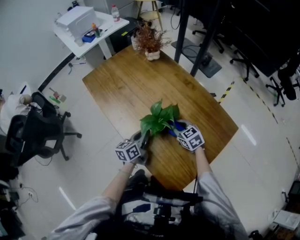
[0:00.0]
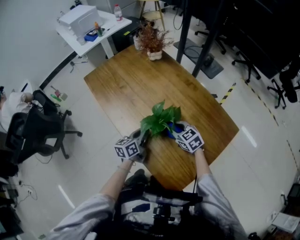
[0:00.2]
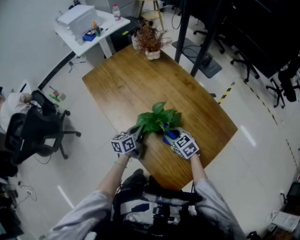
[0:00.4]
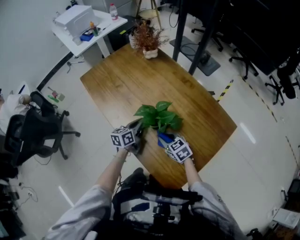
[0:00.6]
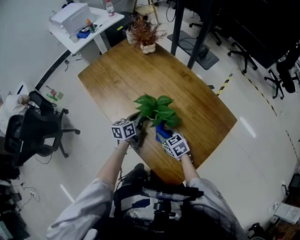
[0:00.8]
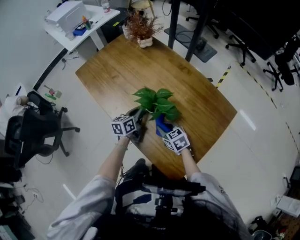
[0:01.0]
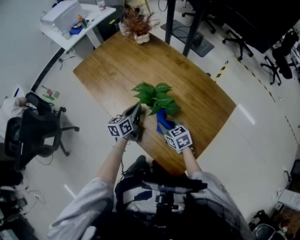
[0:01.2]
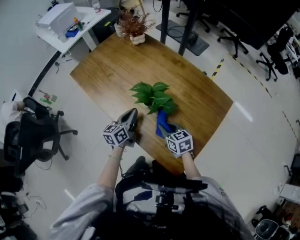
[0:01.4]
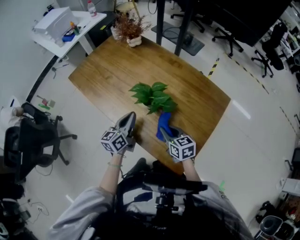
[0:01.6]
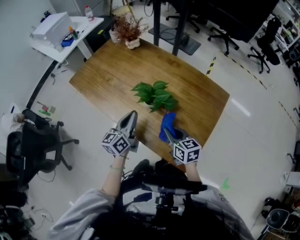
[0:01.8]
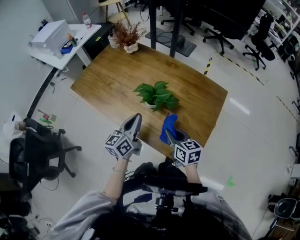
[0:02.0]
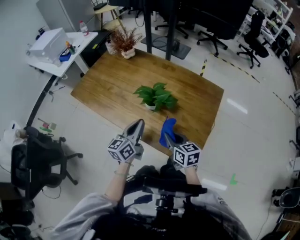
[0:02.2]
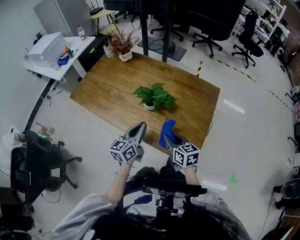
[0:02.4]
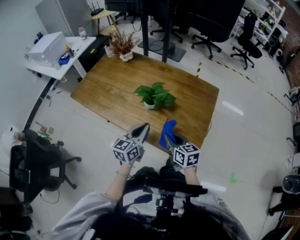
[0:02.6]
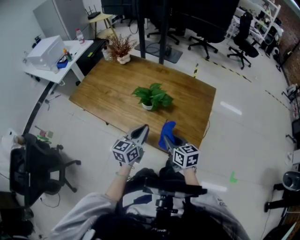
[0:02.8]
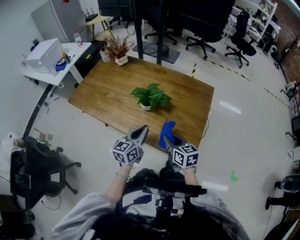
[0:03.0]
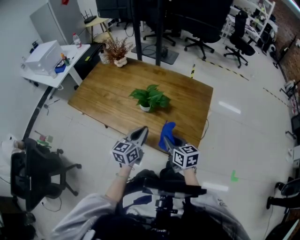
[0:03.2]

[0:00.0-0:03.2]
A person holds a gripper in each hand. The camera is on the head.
0:00.0 to 0:01.6: The left gripper shifts roughly 5 cm upward. The right gripper travels backward by approximately 10 cm, and rotates roughly 30 degrees.
0:01.6 to 0:03.2: Both grippers travel together backward, roughly 10 cm. The right gripper turns by approximately 20 degrees. The left gripper turns by about 30 degrees.

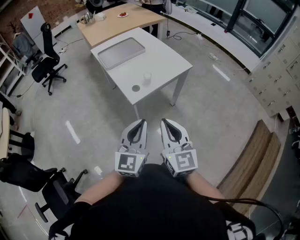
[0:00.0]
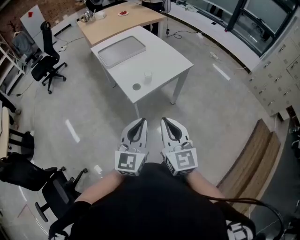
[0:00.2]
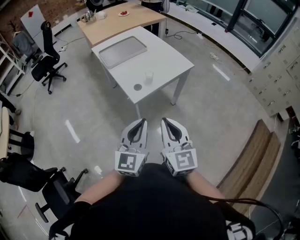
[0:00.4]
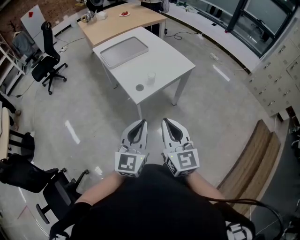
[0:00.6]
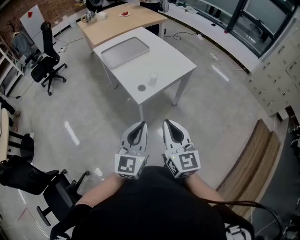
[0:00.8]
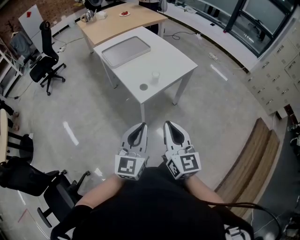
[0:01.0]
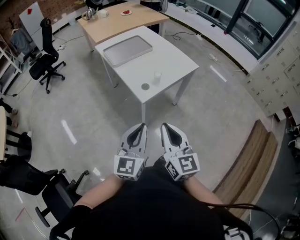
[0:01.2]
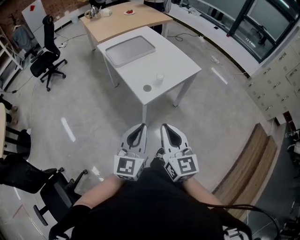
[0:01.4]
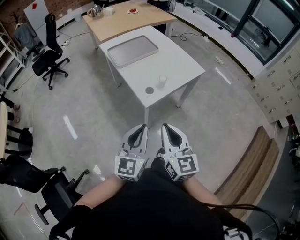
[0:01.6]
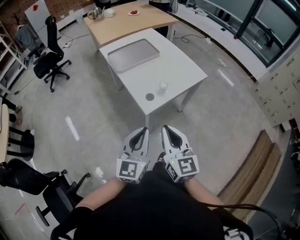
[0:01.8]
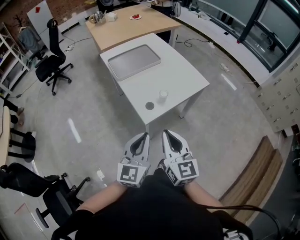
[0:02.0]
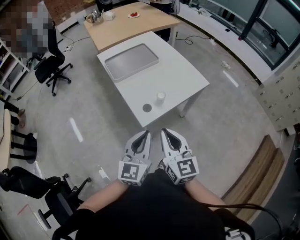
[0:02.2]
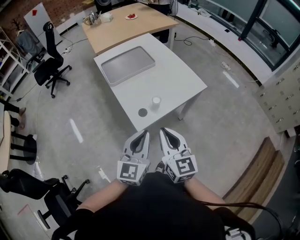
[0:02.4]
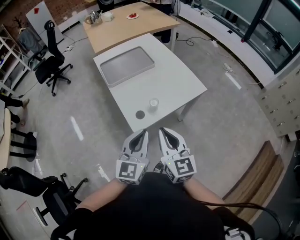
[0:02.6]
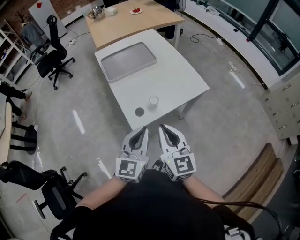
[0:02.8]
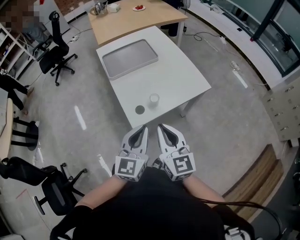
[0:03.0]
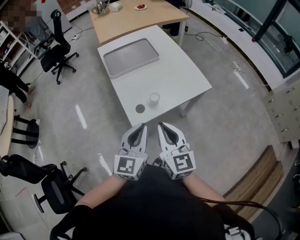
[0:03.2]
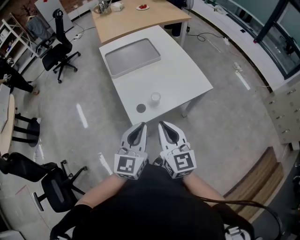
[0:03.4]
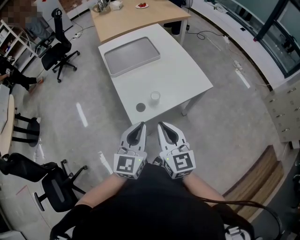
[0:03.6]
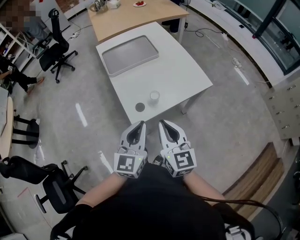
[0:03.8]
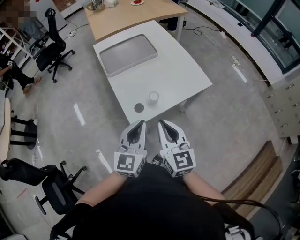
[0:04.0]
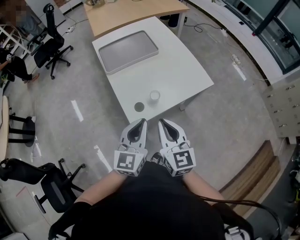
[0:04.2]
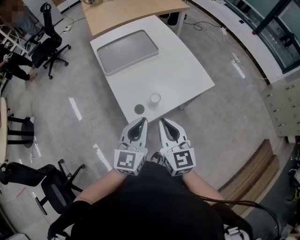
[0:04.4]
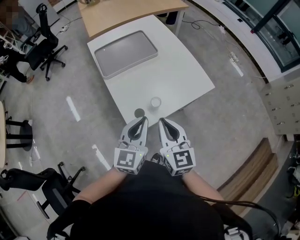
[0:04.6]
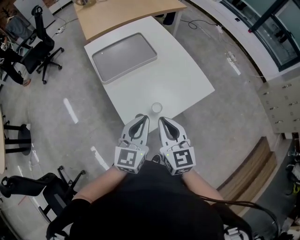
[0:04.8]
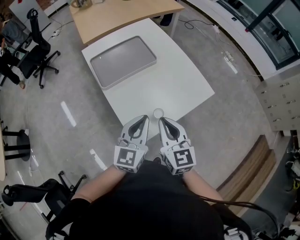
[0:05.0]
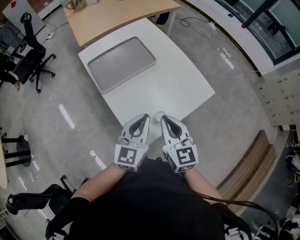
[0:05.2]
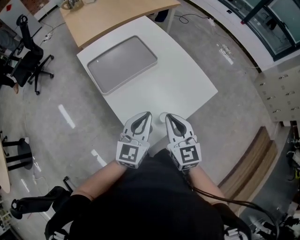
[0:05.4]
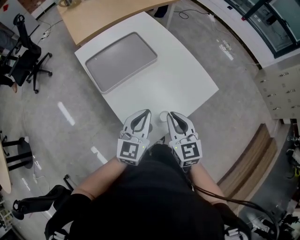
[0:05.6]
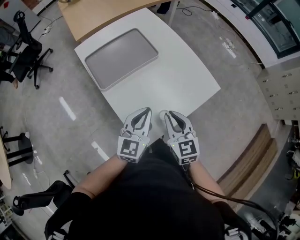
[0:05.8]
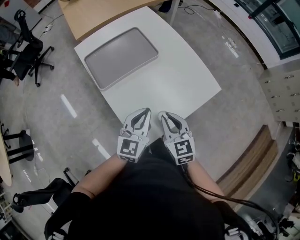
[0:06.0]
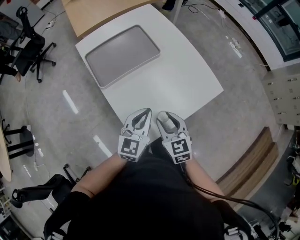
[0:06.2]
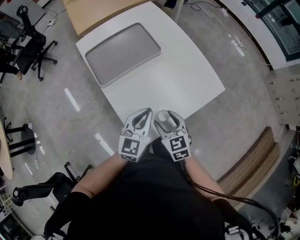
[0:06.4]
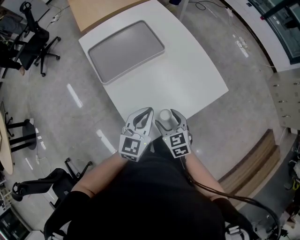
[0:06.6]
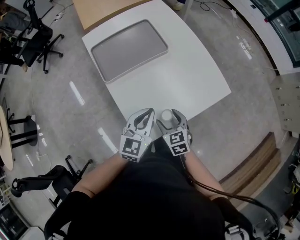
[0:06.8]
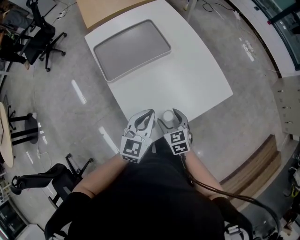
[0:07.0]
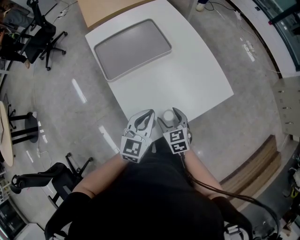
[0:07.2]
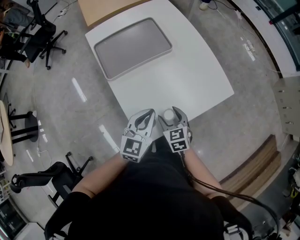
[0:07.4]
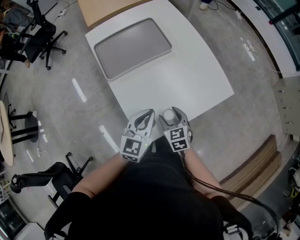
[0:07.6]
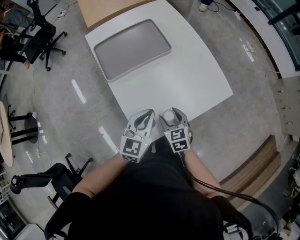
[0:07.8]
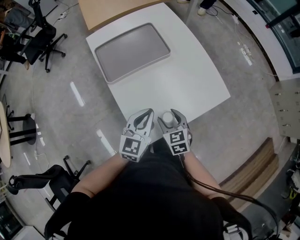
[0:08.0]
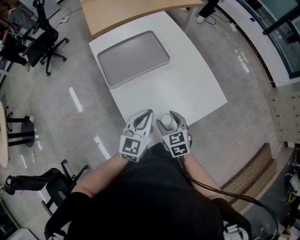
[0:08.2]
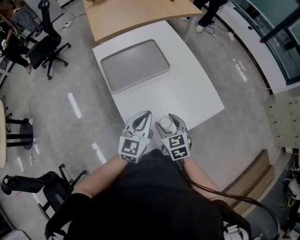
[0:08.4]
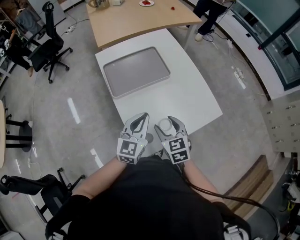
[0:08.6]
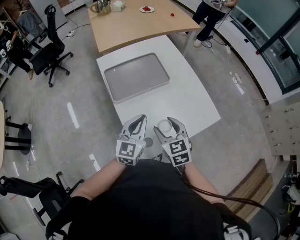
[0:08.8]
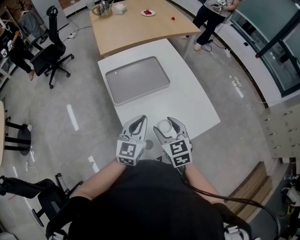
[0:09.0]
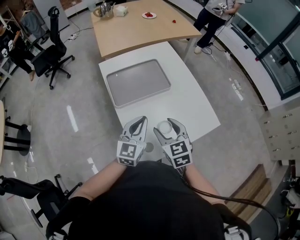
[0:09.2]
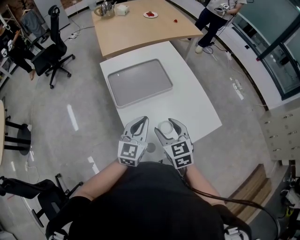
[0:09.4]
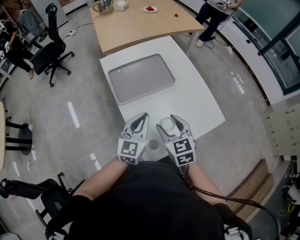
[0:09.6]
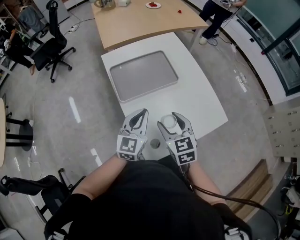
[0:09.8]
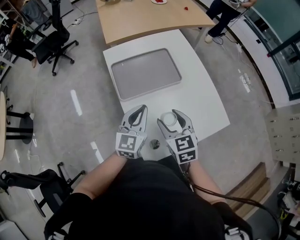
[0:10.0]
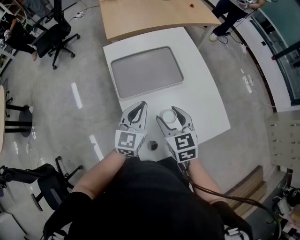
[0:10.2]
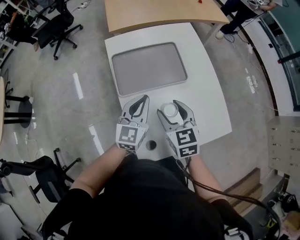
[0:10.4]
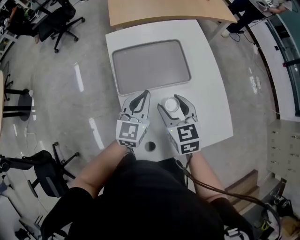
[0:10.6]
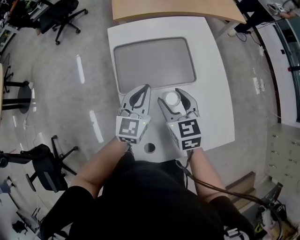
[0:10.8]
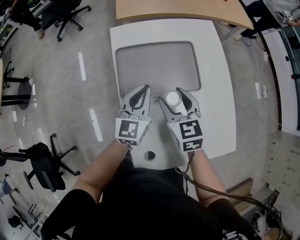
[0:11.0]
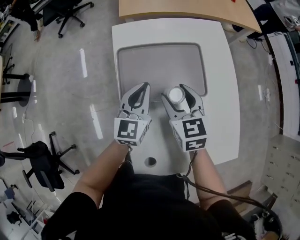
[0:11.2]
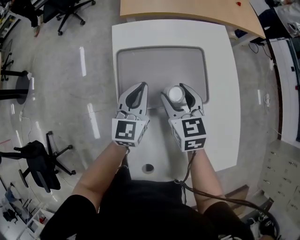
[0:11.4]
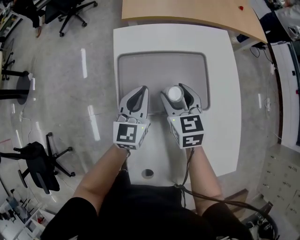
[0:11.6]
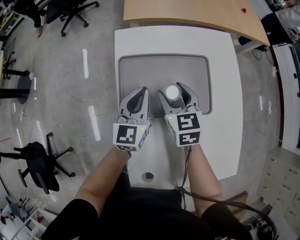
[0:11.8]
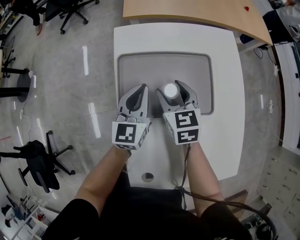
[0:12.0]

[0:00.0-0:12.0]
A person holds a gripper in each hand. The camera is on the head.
0:00.0 to 0:01.6: The grippers both shift to the left by some 10 cm.
0:01.6 to 0:03.0: The grippers both shift forward and to the right by roughly 20 cm.
0:03.0 to 0:04.4: The two grippers go some 5 cm forward.
0:04.4 to 0:06.0: The left gripper goes roughly 20 cm forward, while the right gripper heads forward and downward, covering some 20 cm.
0:06.0 to 0:07.6: The right gripper moves downward, approximately 15 cm, and opens up.
0:07.6 to 0:09.0: The right gripper is displaced upward by about 20 cm. Meanwhile the left gripper shifts roughly 10 cm upward and to the left.
0:09.0 to 0:10.4: Both grippers move forward, approximately 15 cm.
0:10.4 to 0:12.0: The grippers both shift forward and downward by roughly 25 cm.

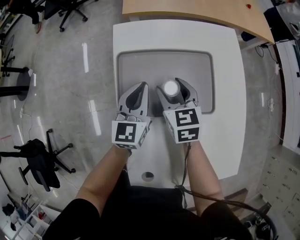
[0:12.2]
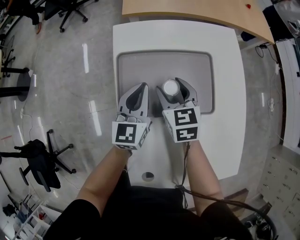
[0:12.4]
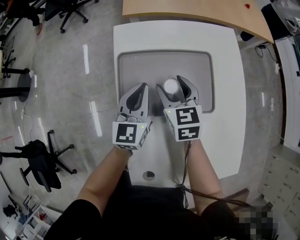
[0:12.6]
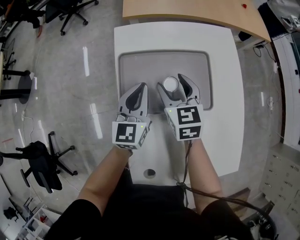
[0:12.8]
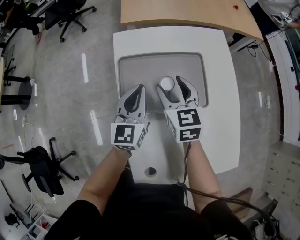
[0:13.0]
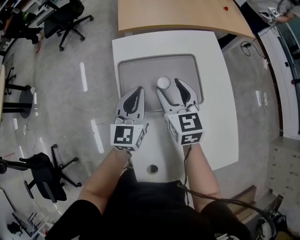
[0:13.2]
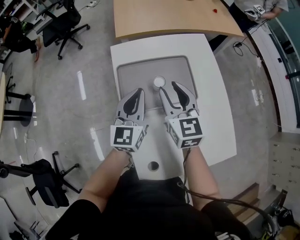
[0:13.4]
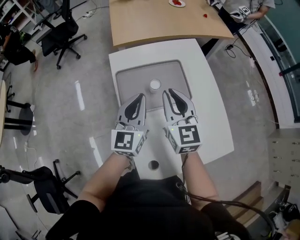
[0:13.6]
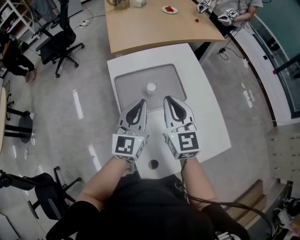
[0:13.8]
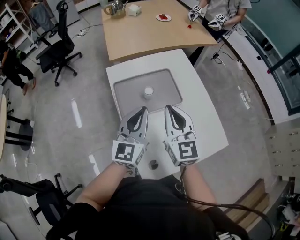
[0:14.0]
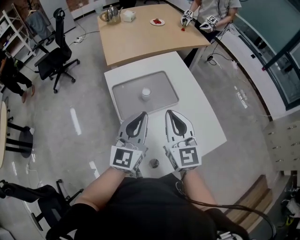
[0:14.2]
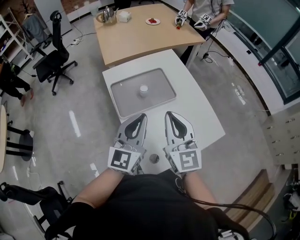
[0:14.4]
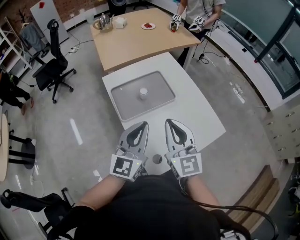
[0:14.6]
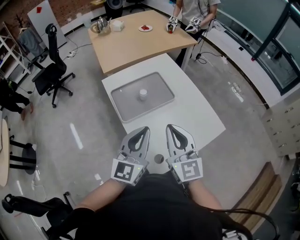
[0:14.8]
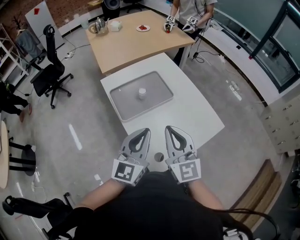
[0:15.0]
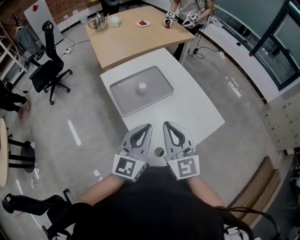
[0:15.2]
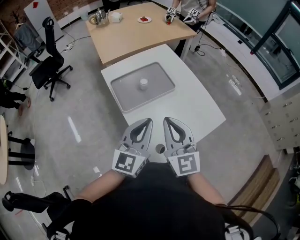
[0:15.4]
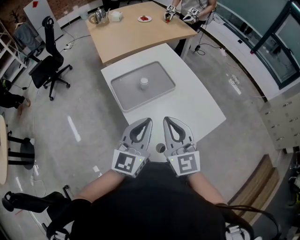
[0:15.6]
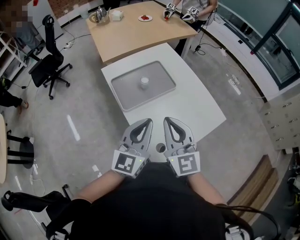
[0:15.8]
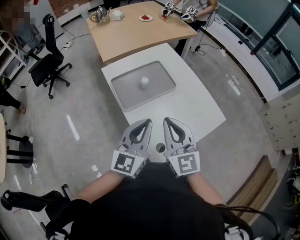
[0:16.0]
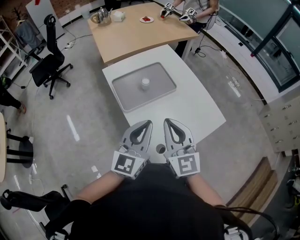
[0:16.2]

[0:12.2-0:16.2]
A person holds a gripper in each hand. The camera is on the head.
0:12.2 to 0:13.6: The grippers both shift upward and backward by roughly 25 cm. The right gripper changes its angle by approximately 30 degrees, and closes its fingers.
0:13.6 to 0:14.8: Both grippers travel together backward and upward, approximately 25 cm. The left gripper rotates approximately 20 degrees.
0:14.8 to 0:16.2: The grippers move only a little.

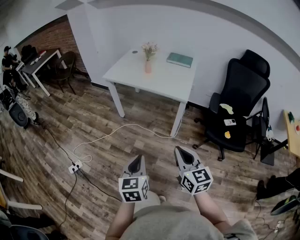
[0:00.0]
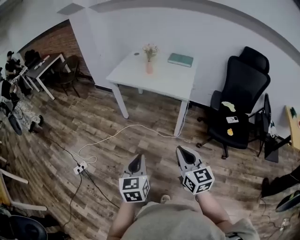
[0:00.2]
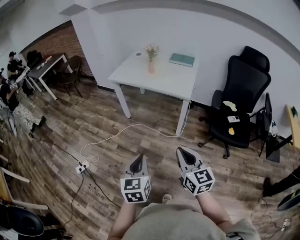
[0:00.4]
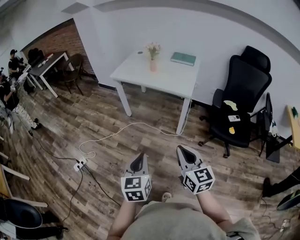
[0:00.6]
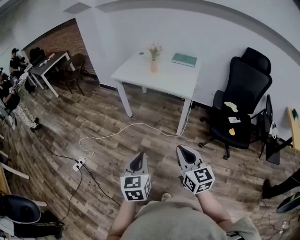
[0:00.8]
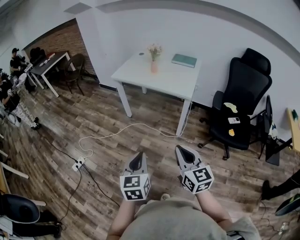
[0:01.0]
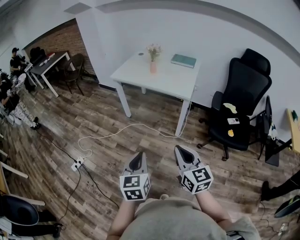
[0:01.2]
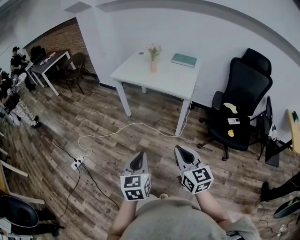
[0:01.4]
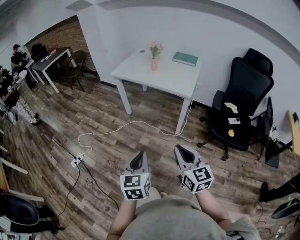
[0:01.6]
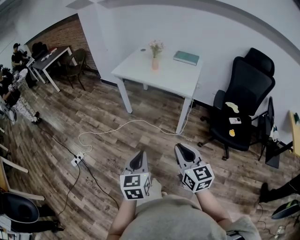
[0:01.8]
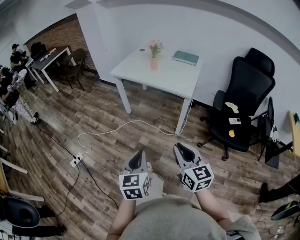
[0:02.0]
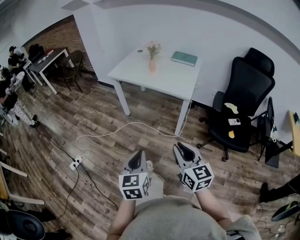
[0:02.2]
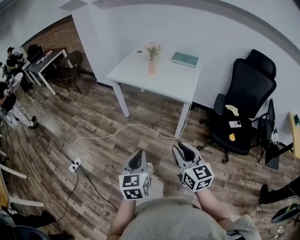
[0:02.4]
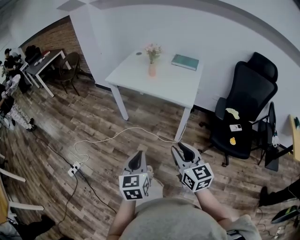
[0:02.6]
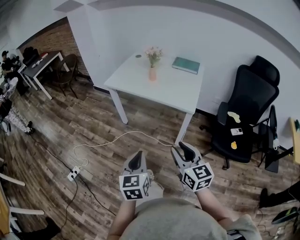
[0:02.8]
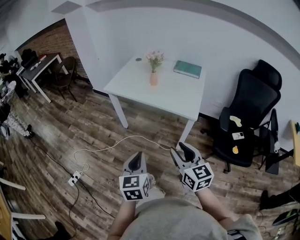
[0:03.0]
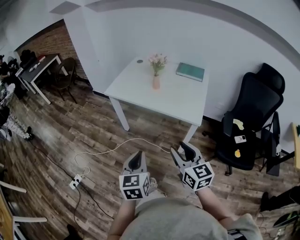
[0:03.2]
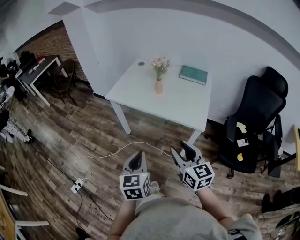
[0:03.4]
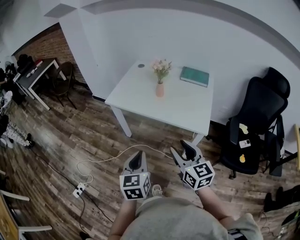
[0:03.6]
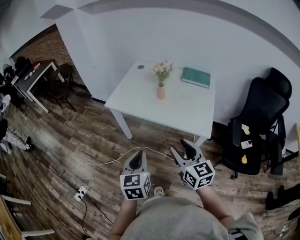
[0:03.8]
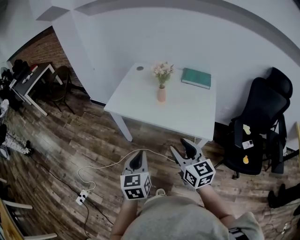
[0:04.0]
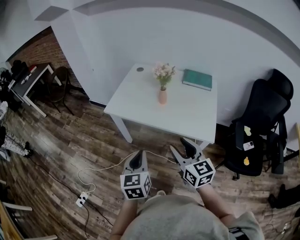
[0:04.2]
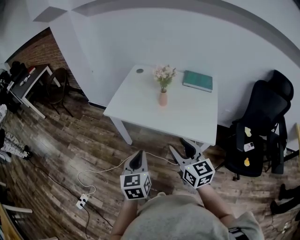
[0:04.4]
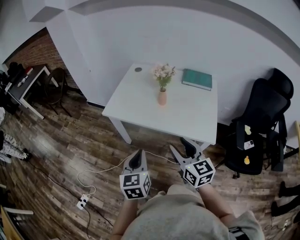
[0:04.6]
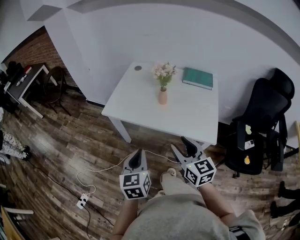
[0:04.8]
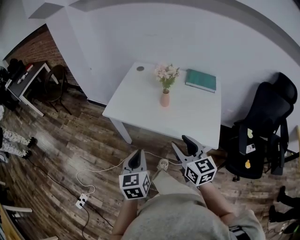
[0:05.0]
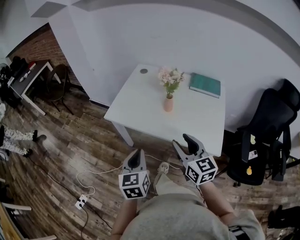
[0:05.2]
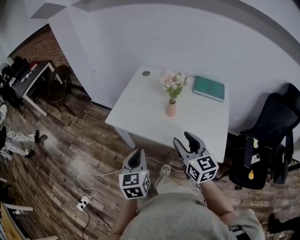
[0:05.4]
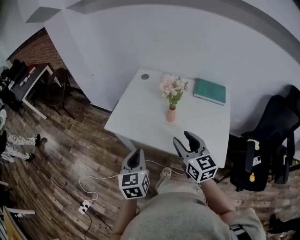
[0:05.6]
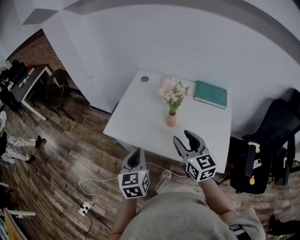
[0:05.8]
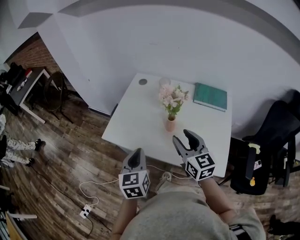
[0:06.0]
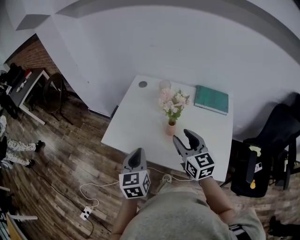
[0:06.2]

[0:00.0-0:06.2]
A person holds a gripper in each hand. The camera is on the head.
0:00.0 to 0:01.6: Both grippers move backward, roughly 5 cm.
0:01.6 to 0:03.2: Both grippers move forward, approximately 30 cm. The right gripper opens.
0:03.2 to 0:04.6: Both grippers travel together forward, roughly 20 cm.
0:04.6 to 0:06.2: Both grippers move forward, roughly 25 cm.
